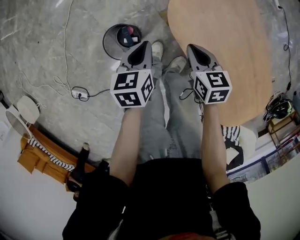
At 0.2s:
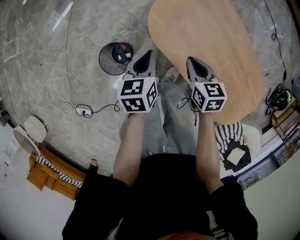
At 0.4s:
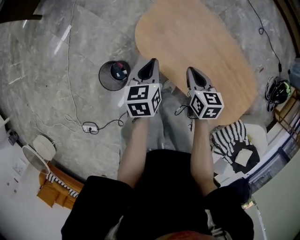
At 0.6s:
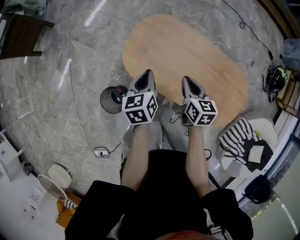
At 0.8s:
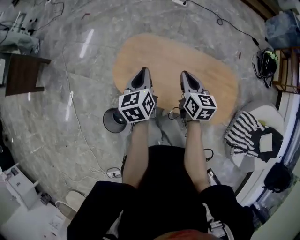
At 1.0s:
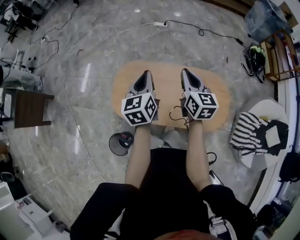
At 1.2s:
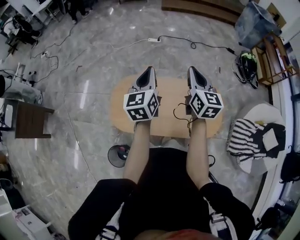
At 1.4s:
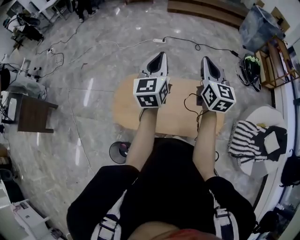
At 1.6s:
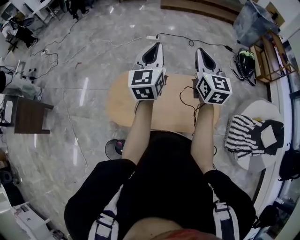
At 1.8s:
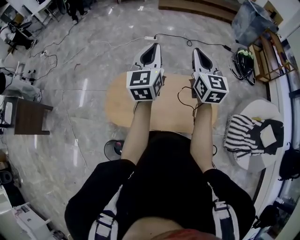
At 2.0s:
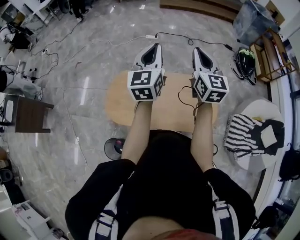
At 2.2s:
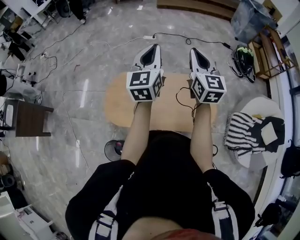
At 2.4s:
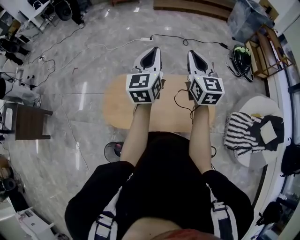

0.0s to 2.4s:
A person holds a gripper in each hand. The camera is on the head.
0.0s to 1.2s: The pair of grippers is taken approximately 50 cm. The left gripper angles its fingers upward, by approximately 40 degrees. The right gripper tips its fingers upward by about 40 degrees.
1.2s to 2.4s: The left gripper goes approximately 15 cm to the right and upward. The right gripper shifts roughly 10 cm upward and to the right.

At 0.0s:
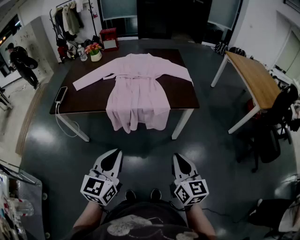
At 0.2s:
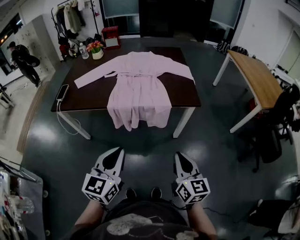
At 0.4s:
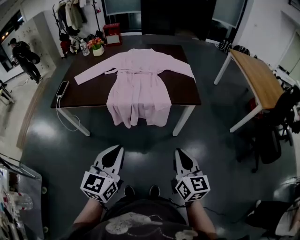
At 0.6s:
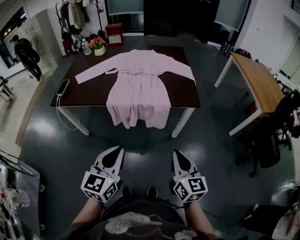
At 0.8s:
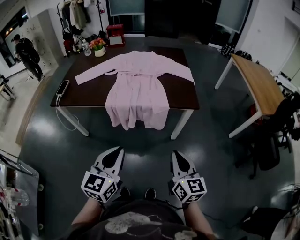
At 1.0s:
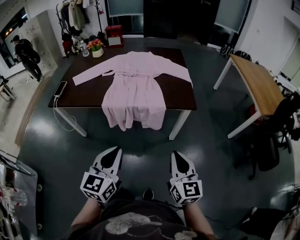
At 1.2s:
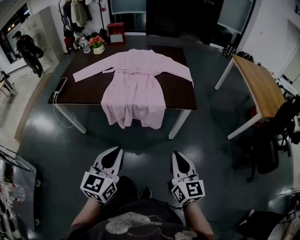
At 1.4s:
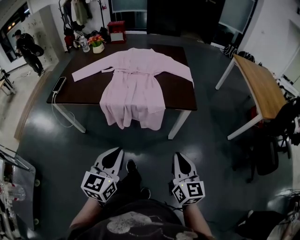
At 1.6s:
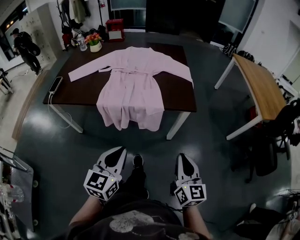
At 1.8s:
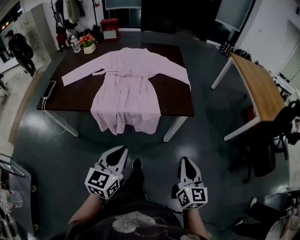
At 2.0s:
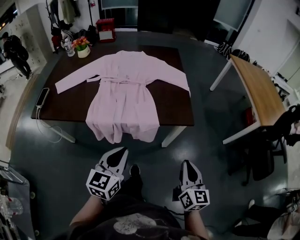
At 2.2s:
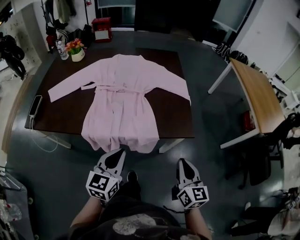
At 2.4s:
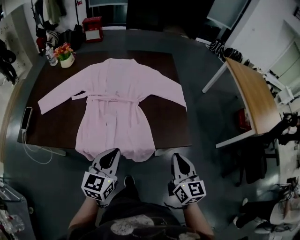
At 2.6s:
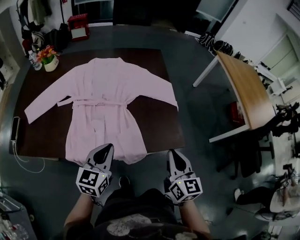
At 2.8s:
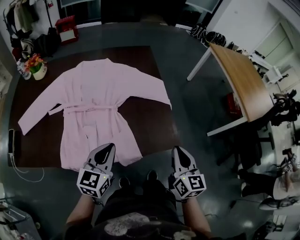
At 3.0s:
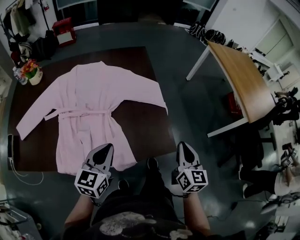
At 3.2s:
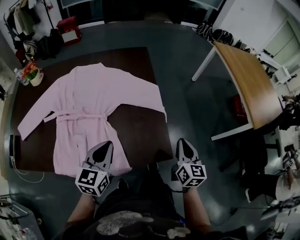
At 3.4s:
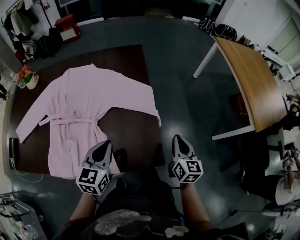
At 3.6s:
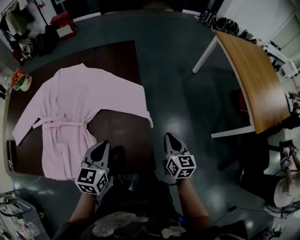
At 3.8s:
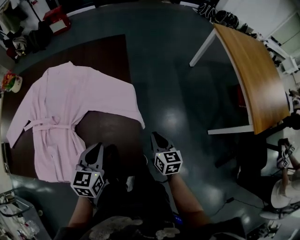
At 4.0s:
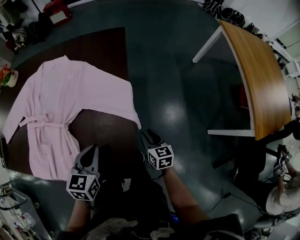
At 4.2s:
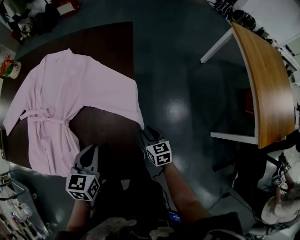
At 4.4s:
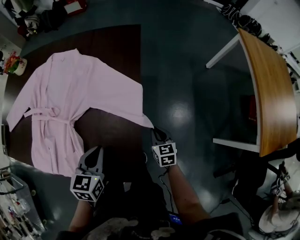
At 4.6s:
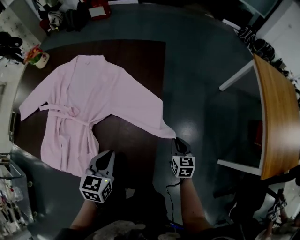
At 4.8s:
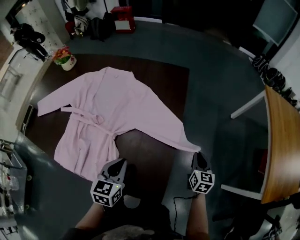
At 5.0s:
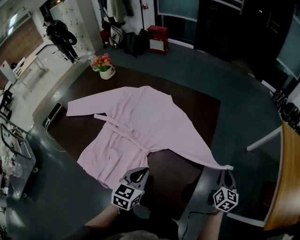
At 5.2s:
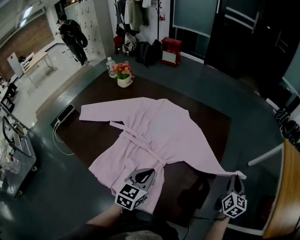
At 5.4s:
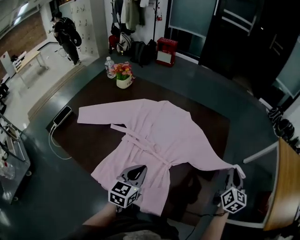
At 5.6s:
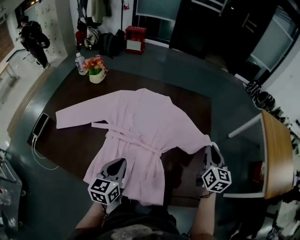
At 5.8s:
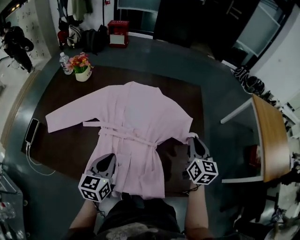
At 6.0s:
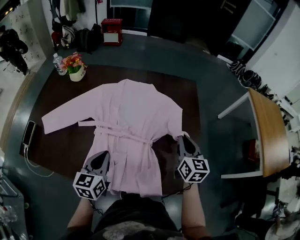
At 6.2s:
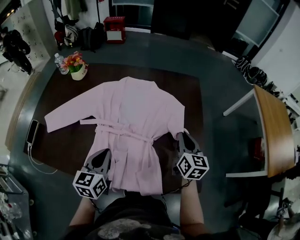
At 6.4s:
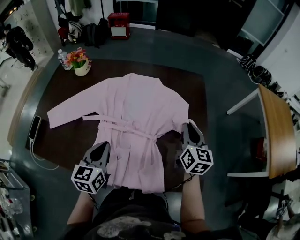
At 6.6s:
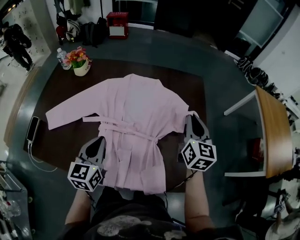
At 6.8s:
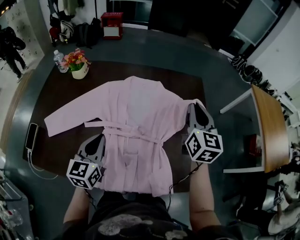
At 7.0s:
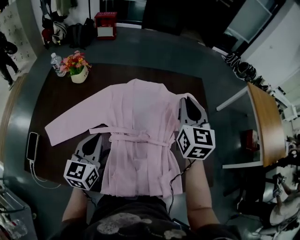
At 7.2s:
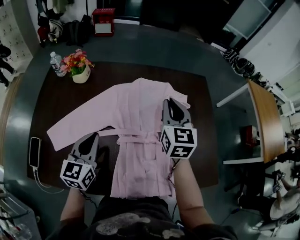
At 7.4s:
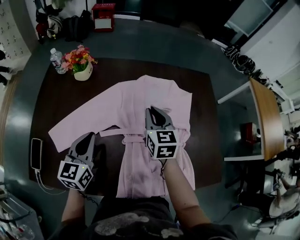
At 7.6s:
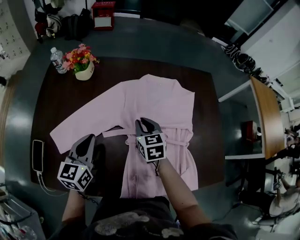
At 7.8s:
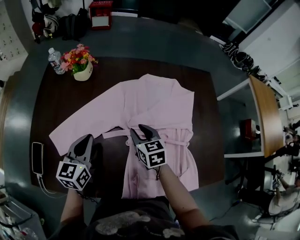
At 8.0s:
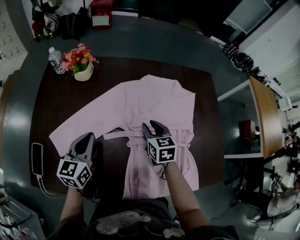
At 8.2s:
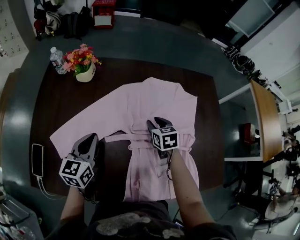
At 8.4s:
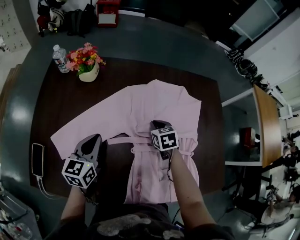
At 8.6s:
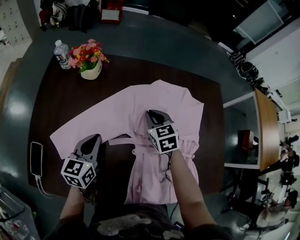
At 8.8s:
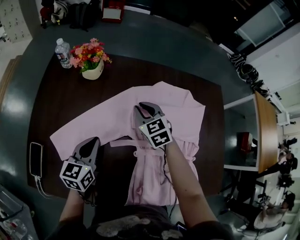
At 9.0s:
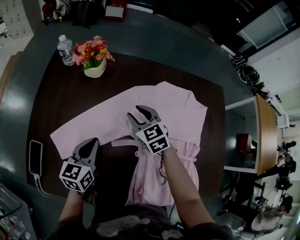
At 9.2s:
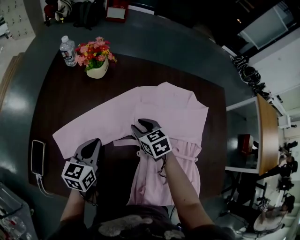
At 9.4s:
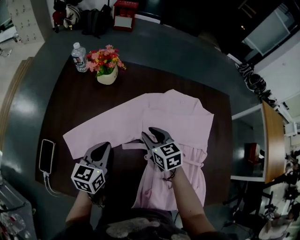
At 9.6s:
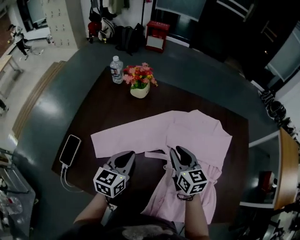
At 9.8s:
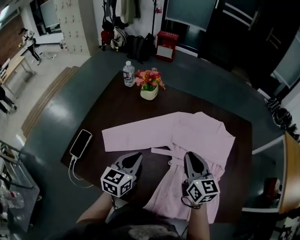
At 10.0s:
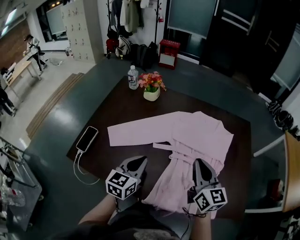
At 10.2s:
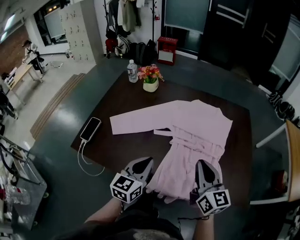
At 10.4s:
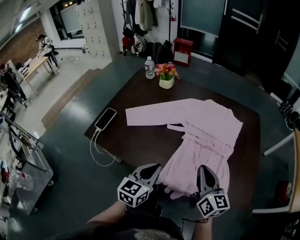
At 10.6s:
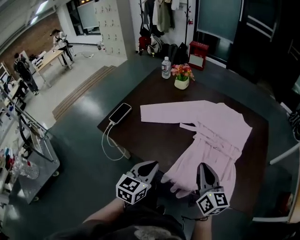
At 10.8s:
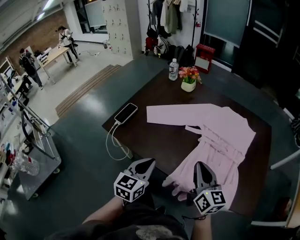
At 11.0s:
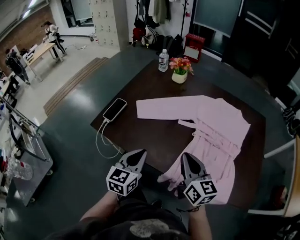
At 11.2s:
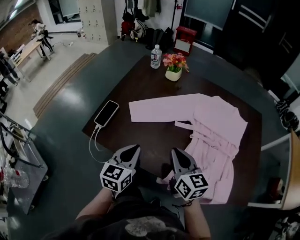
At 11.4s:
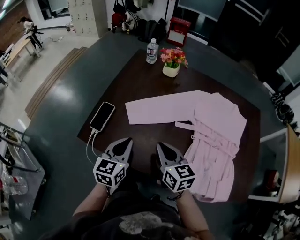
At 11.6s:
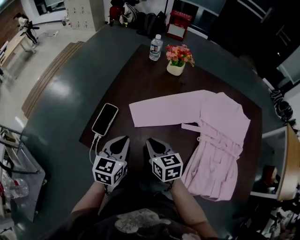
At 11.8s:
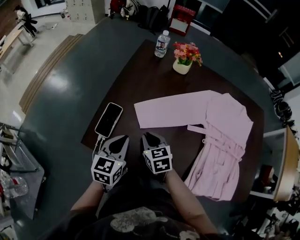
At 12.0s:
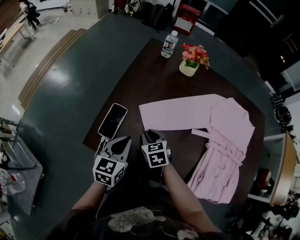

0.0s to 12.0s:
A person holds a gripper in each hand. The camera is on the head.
0.0s to 1.6s: The grippers both shift to the right and forward by approximately 10 cm.
1.6s to 3.0s: The grippers both shift forward by approximately 40 cm.
3.0s to 4.4s: The right gripper heads downward, covering roughly 25 cm, changes its angle by about 40 degrees, and opens, then closes again; the left gripper changes place by some 20 cm, and rotates approximately 30 degrees.
4.4s to 6.0s: The left gripper heads to the left, covering roughly 35 cm. The right gripper heads to the left and upward, covering approximately 40 cm, and rotates roughly 20 degrees.
6.0s to 7.6s: The right gripper goes roughly 40 cm to the left, and swivels roughly 20 degrees, while the left gripper heads to the left and forward, covering approximately 30 cm.
7.6s to 9.0s: The left gripper goes roughly 5 cm downward; the right gripper is displaced to the left and forward by some 15 cm, changes its angle by roughly 30 degrees, and opens up.
9.0s to 10.4s: Both grippers travel together backward, roughly 35 cm. The right gripper rotates about 40 degrees, and closes.
10.4s to 12.0s: The left gripper heads to the left and forward, covering approximately 35 cm, while the right gripper goes about 50 cm to the left, forward and downward, and tips its fingers downward by roughly 40 degrees.

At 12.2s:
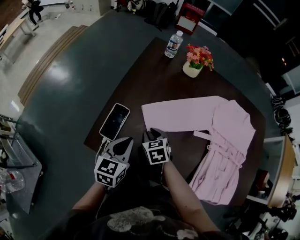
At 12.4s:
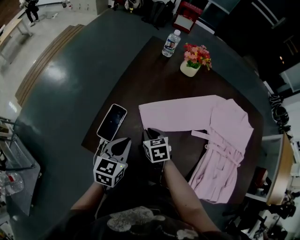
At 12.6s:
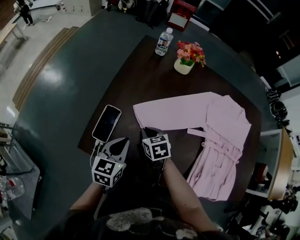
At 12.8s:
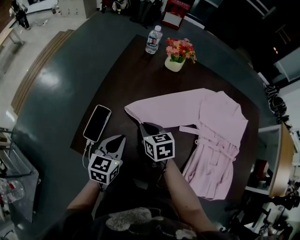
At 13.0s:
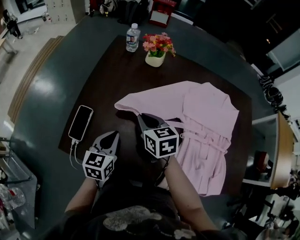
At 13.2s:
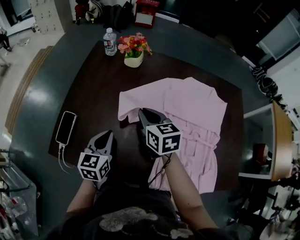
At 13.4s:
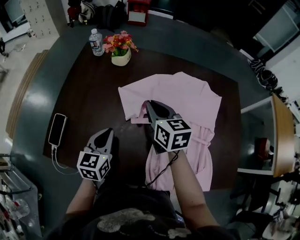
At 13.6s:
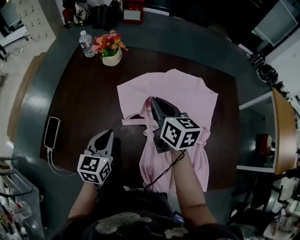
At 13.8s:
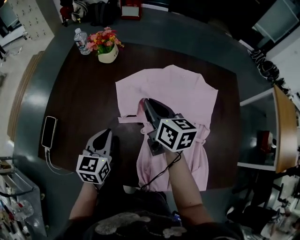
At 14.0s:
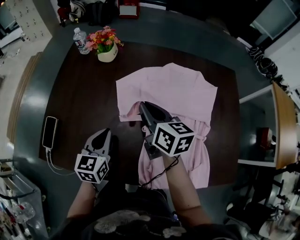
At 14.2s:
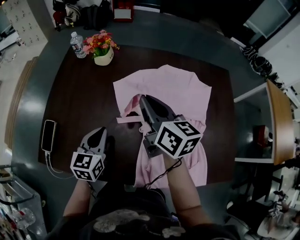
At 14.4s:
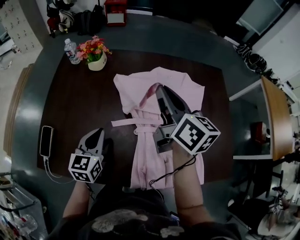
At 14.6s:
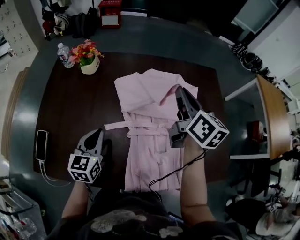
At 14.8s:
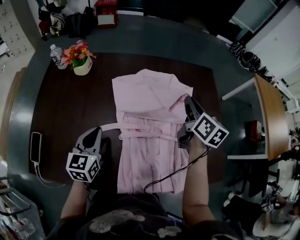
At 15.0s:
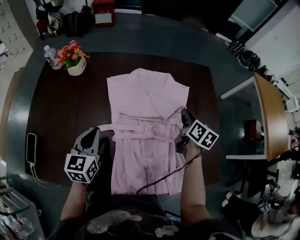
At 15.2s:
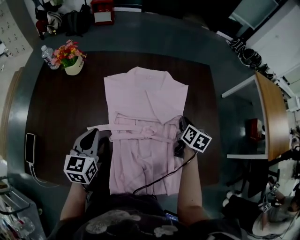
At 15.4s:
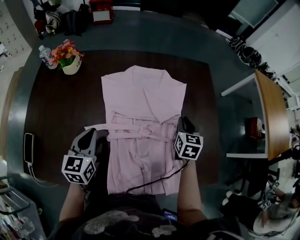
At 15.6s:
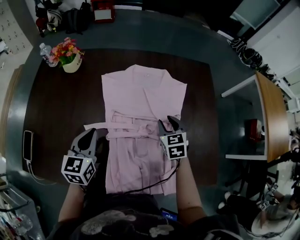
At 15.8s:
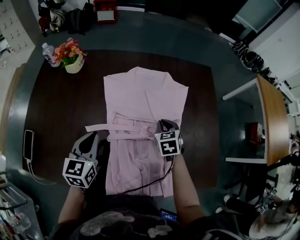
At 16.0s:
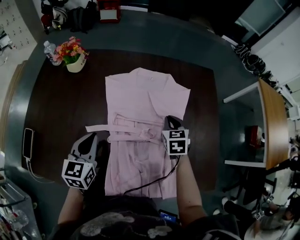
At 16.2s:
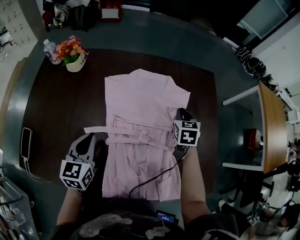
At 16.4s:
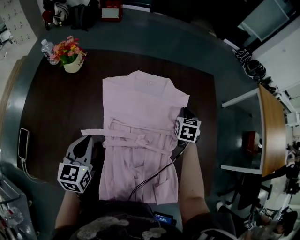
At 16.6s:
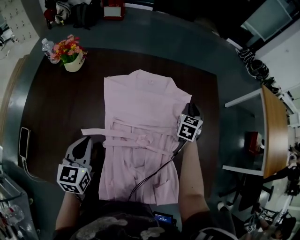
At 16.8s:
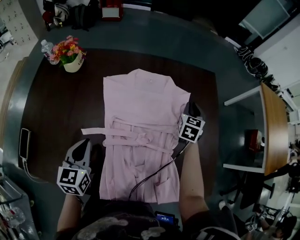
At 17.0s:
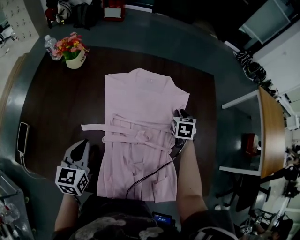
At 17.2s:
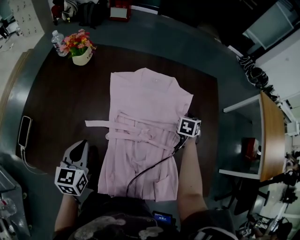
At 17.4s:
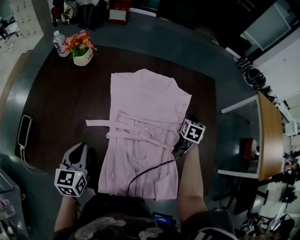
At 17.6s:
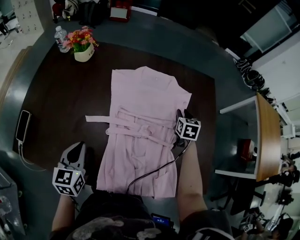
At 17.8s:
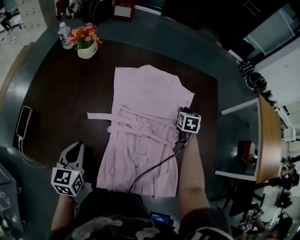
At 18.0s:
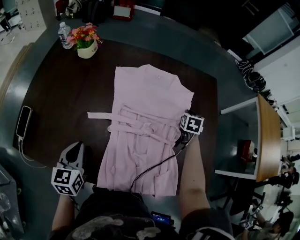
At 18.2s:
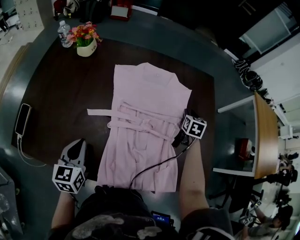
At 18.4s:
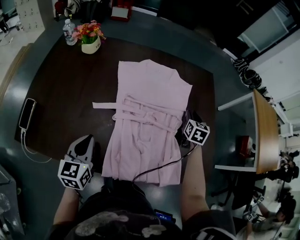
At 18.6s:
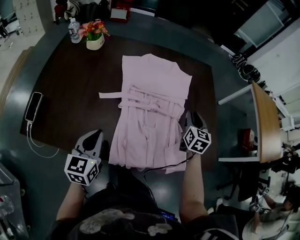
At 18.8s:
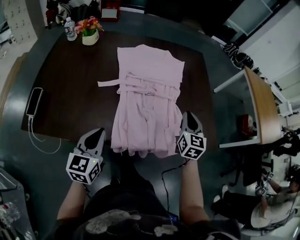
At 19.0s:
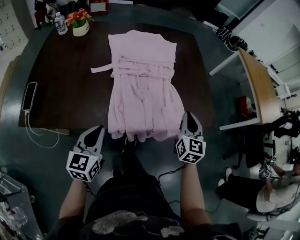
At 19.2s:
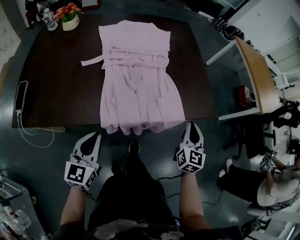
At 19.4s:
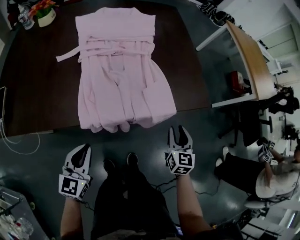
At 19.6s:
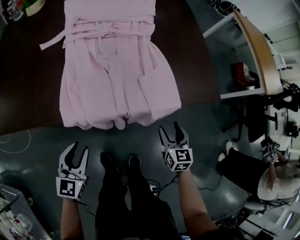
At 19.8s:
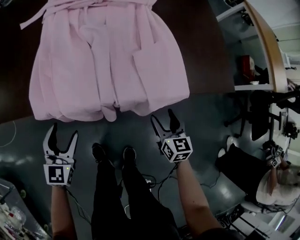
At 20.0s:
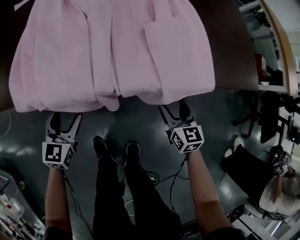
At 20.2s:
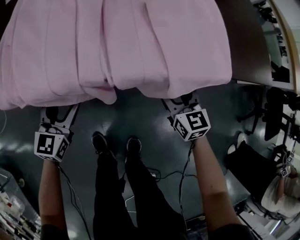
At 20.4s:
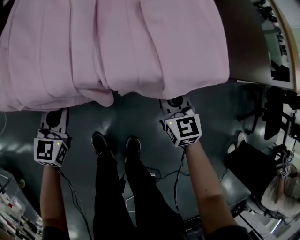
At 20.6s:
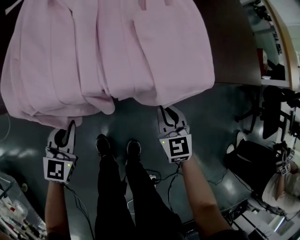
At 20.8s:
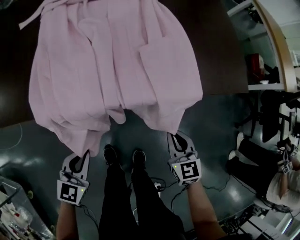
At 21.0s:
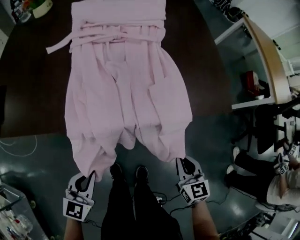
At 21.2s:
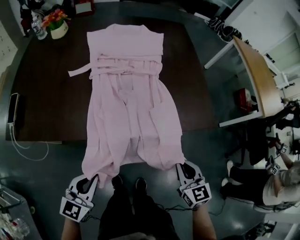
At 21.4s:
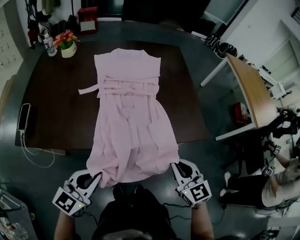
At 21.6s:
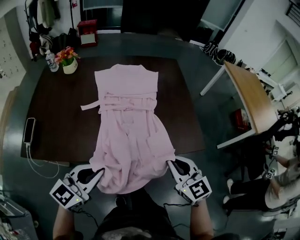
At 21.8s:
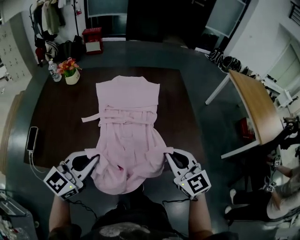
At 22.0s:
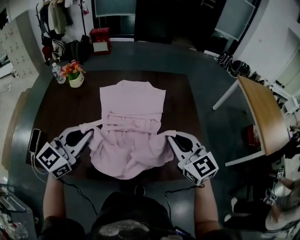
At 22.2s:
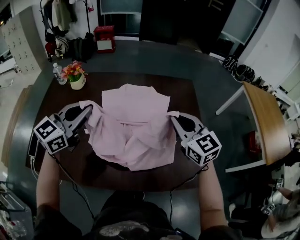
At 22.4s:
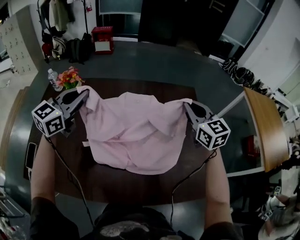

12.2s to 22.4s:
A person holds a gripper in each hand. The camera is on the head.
12.2s to 13.6s: The left gripper goes roughly 30 cm to the right, while the right gripper shifts approximately 40 cm to the right and upward, and angles its fingers upward, by about 30 degrees.
13.6s to 15.2s: The left gripper travels to the right by approximately 10 cm. Meanwhile the right gripper heads to the right, covering about 35 cm, and turns by roughly 40 degrees.
15.2s to 16.6s: The right gripper moves forward, roughly 15 cm, and turns by approximately 40 degrees.
16.6s to 18.0s: The right gripper shifts approximately 5 cm backward, while the left gripper moves backward, some 10 cm.
18.0s to 19.4s: The left gripper heads backward and to the right, covering approximately 30 cm, and rotates roughly 30 degrees. The right gripper is displaced backward by some 50 cm, swivels some 20 degrees, and opens.
19.4s to 21.0s: Both grippers move backward, about 5 cm. The left gripper travels downward and back again, about 25 cm each way, and opens, then closes again; the right gripper travels downward and back again, roughly 25 cm each way, swivels some 20 degrees, and closes its fingers.
21.0s to 22.4s: The two grippers travel together, forward, roughly 50 cm. Both grippers move upward, some 40 cm. The left gripper changes its angle by some 20 degrees. Meanwhile the right gripper changes its angle by approximately 30 degrees.
